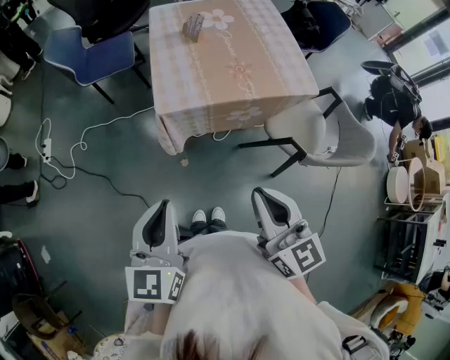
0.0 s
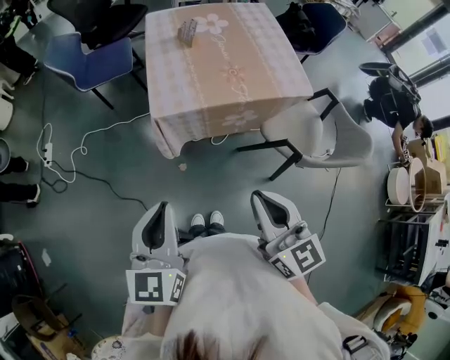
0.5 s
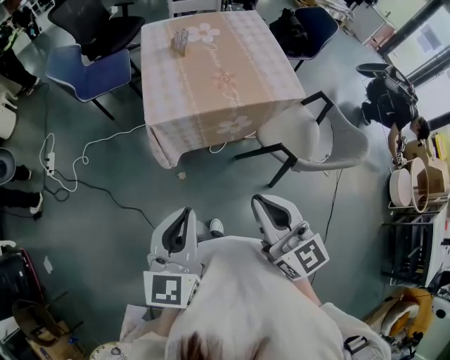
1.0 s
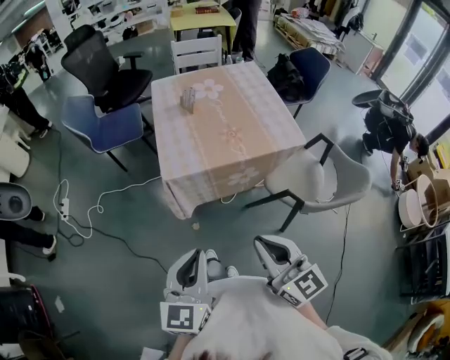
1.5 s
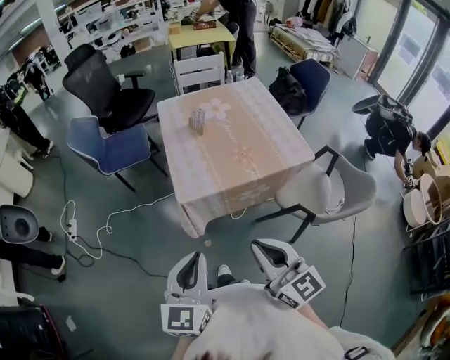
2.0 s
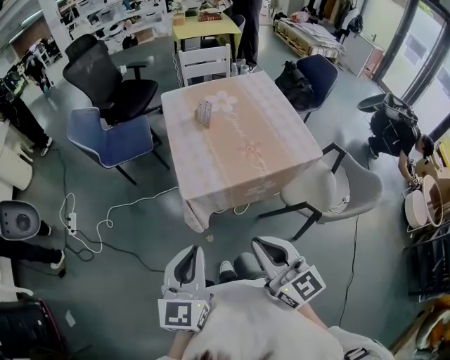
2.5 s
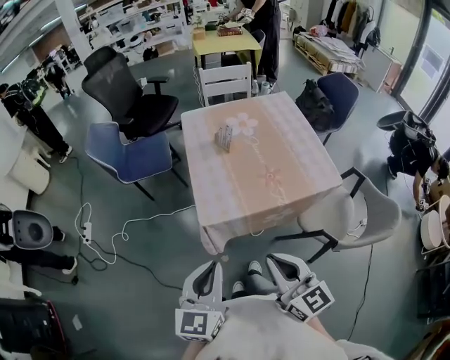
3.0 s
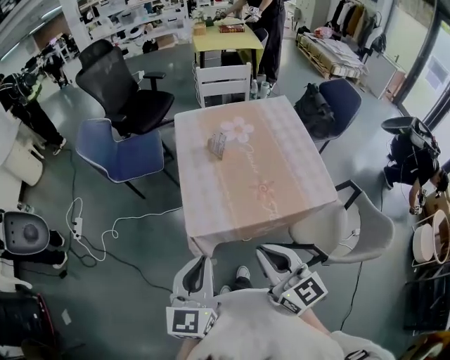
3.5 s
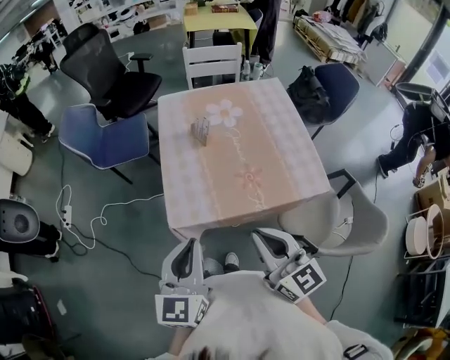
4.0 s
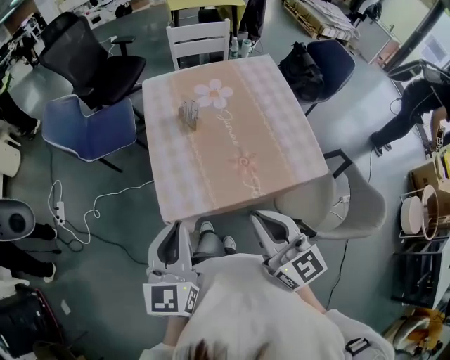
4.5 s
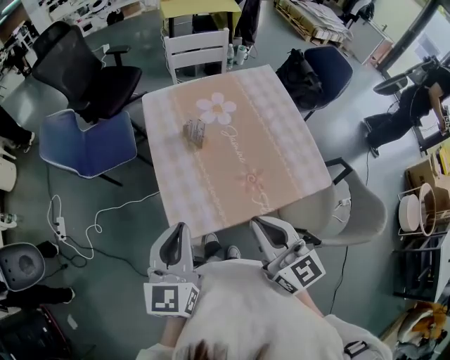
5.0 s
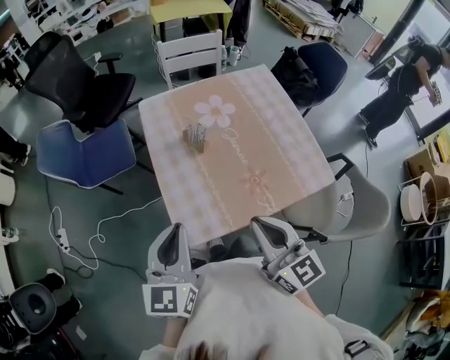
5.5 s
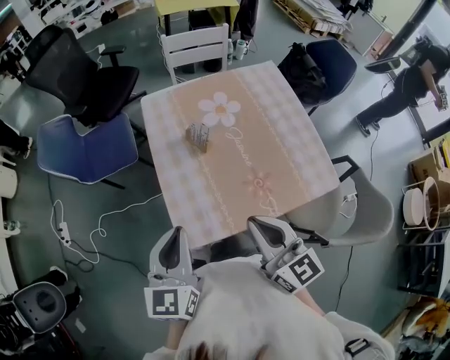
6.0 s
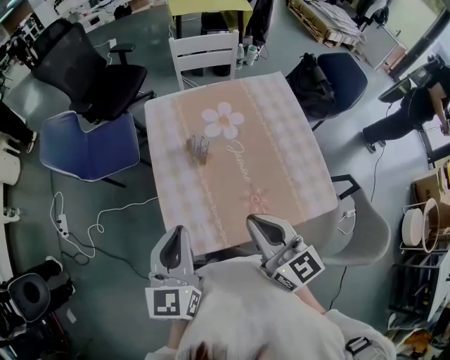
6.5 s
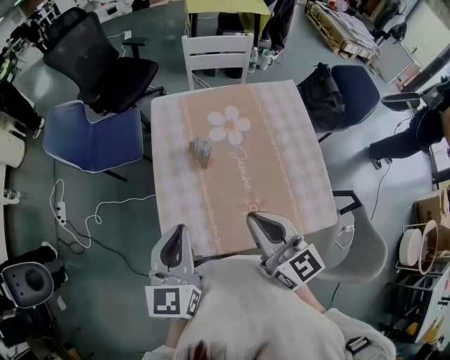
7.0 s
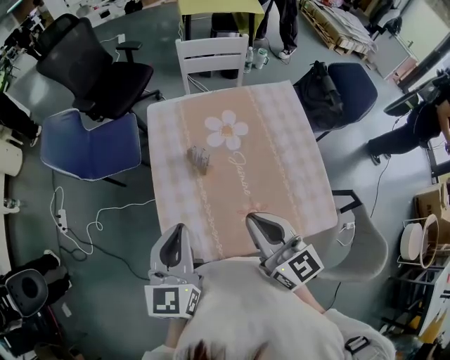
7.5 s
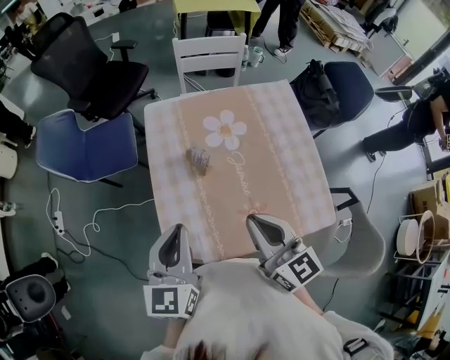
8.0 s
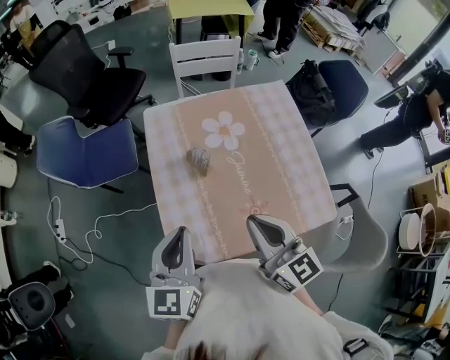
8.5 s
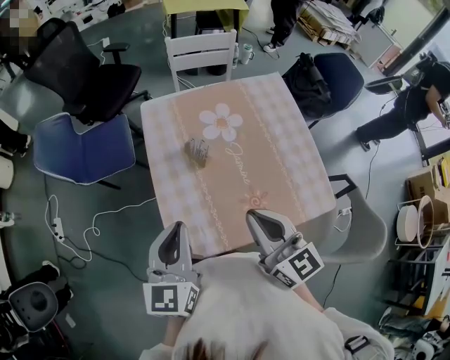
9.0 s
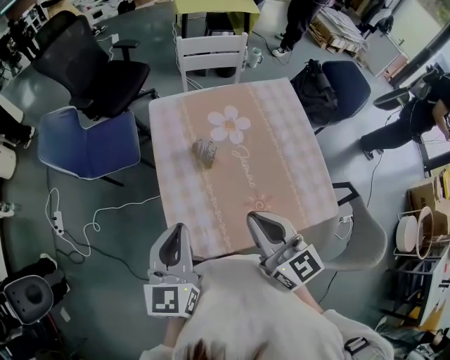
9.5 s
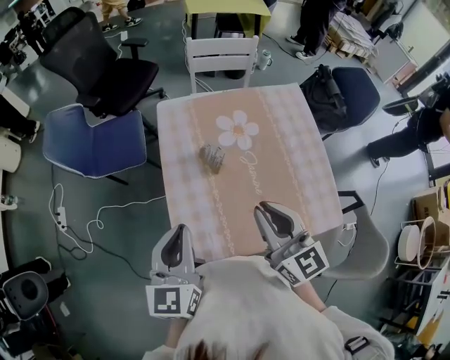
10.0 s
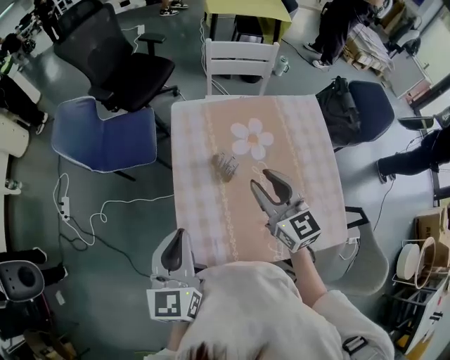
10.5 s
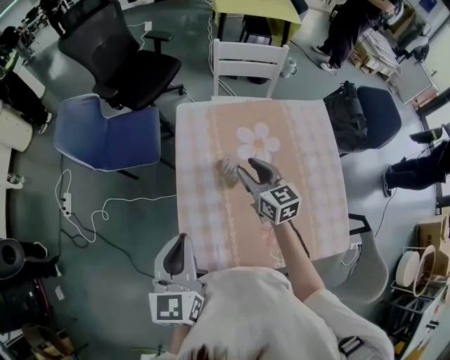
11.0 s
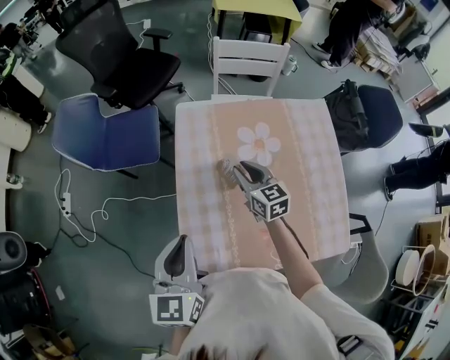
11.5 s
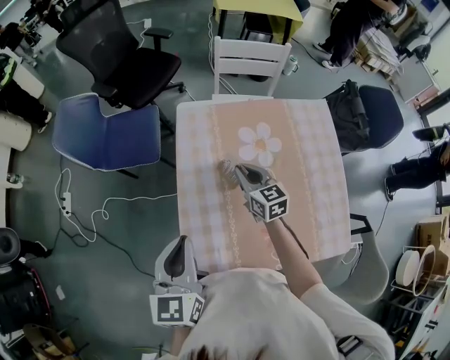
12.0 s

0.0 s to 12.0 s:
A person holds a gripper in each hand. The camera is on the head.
0.0 to 2.0 s: The left gripper goes to the right and returns, approximately 10 cm each way, while the right gripper moves about 5 cm to the right and comes back.
2.0 to 4.0 s: The two grippers go roughly 20 cm forward.
4.0 to 6.0 s: Both grippers move forward, some 15 cm.
6.0 to 8.0 s: Both grippers travel together forward and to the right, about 10 cm.
8.0 to 10.0 s: The grippers make only small movements.
10.0 to 12.0 s: The right gripper heads forward and downward, covering some 30 cm, and opens and closes again.

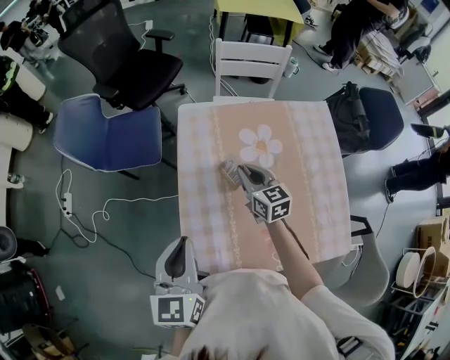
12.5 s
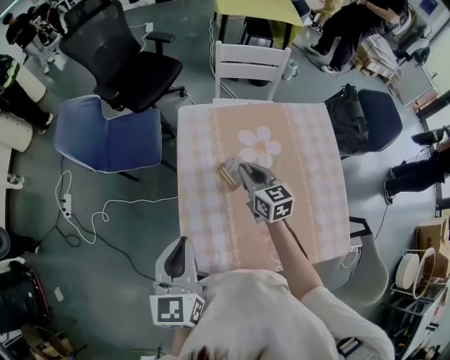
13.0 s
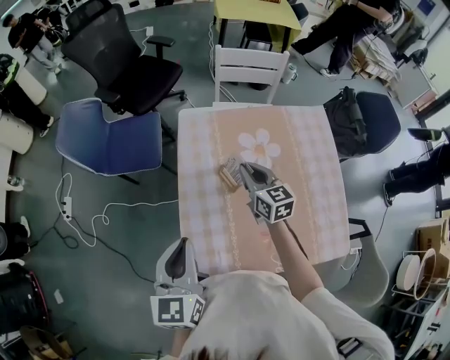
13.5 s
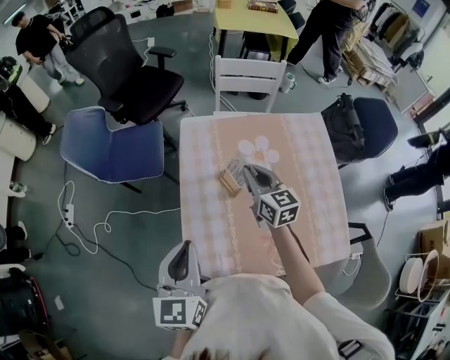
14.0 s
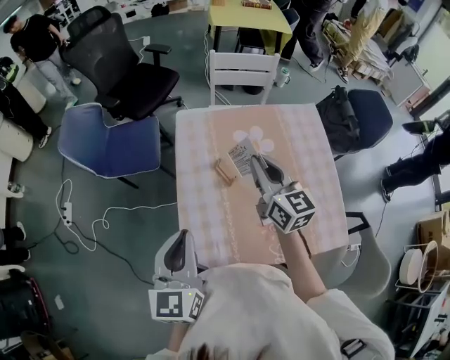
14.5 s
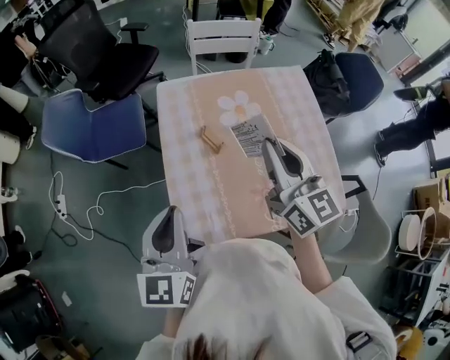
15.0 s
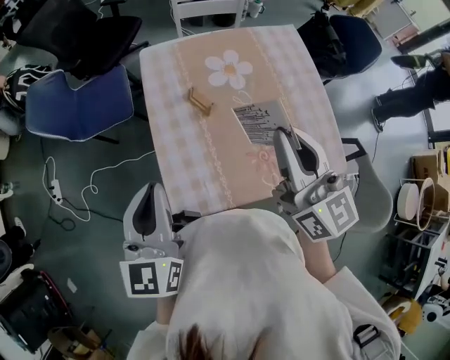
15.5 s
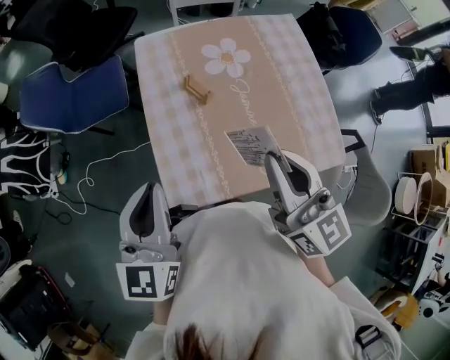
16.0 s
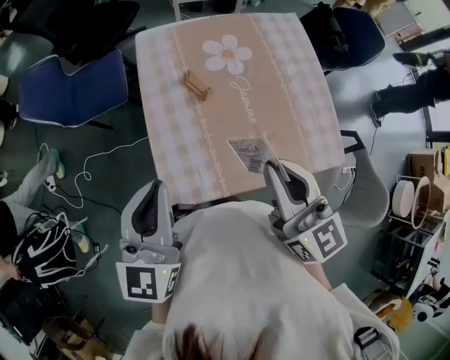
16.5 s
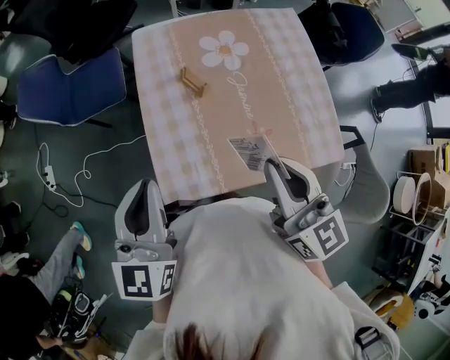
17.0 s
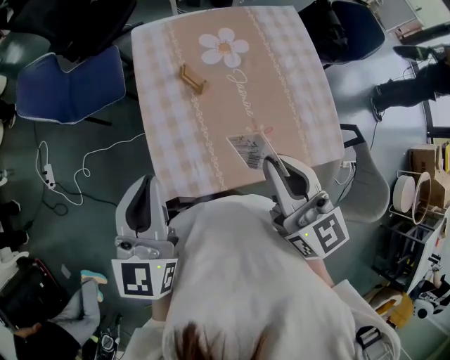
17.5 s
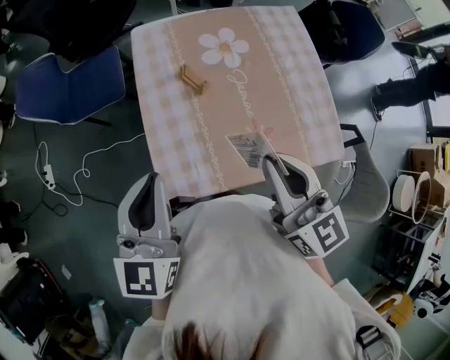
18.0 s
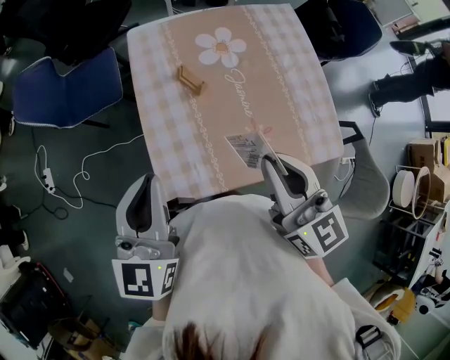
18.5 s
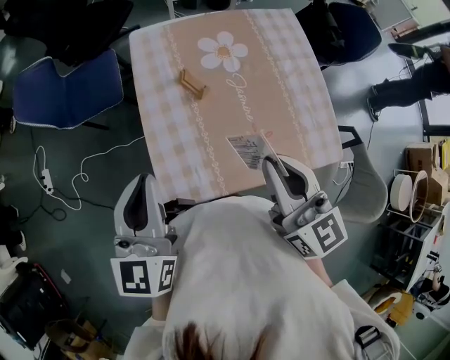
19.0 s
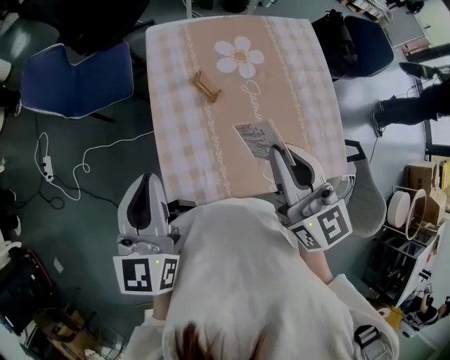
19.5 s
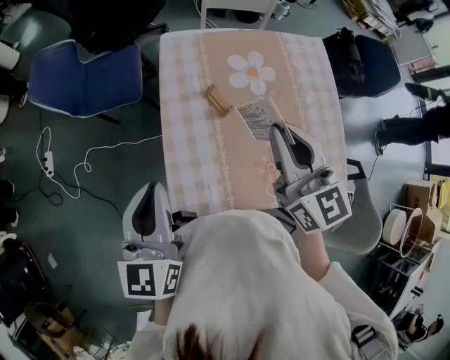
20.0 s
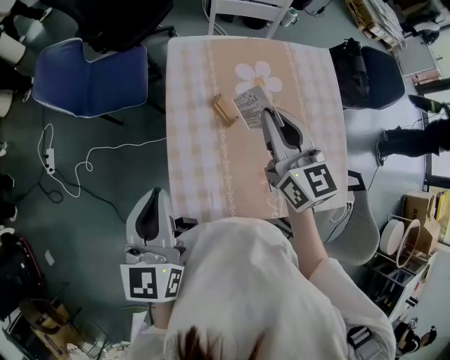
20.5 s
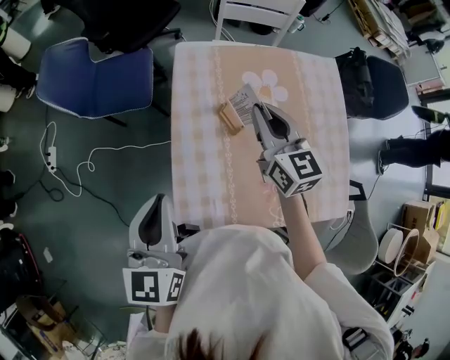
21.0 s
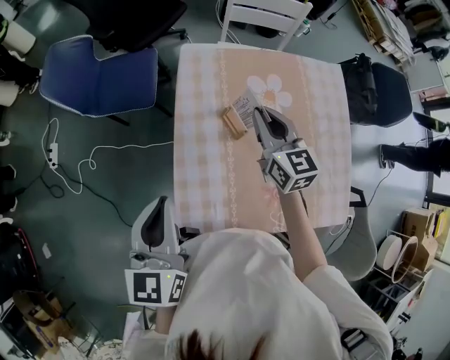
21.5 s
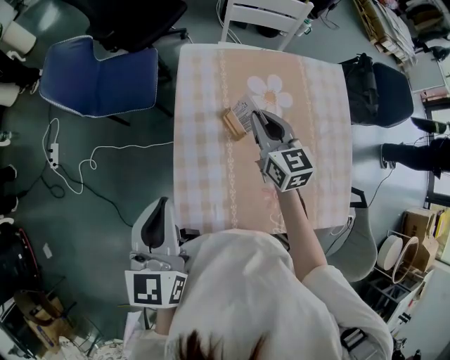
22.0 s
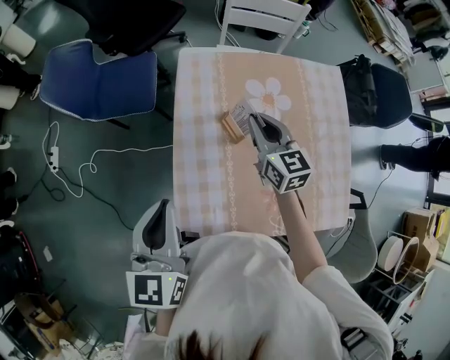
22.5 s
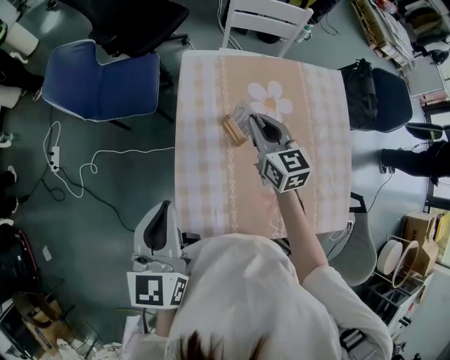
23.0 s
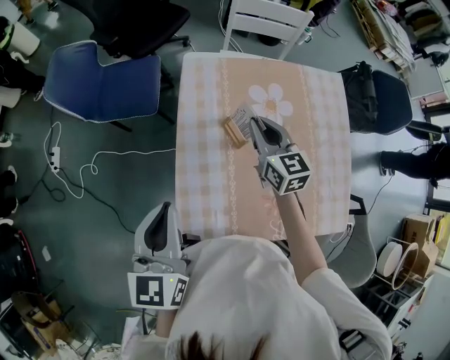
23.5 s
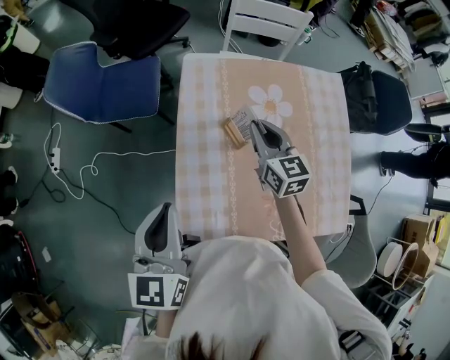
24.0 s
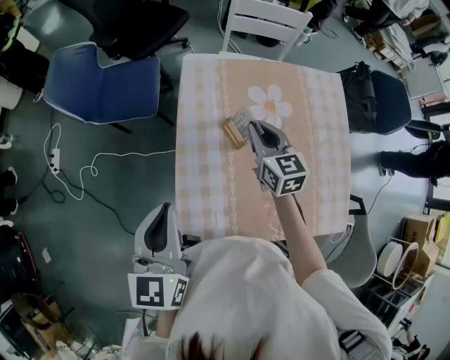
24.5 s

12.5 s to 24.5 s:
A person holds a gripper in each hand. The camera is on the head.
12.5 to 14.5 s: The right gripper heads upward, covering approximately 15 cm.
14.5 to 16.5 s: The right gripper heads backward, covering approximately 20 cm.
16.5 to 18.5 s: The two grippers keep their place.
18.5 to 20.5 s: The left gripper ends up about 5 cm from where it was, while the right gripper heads forward, covering approximately 20 cm.
20.5 to 22.5 s: The right gripper moves downward and forward, some 15 cm.
22.5 to 24.5 s: Both grippers stay about where they are.

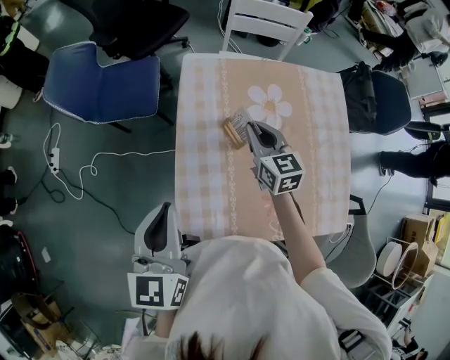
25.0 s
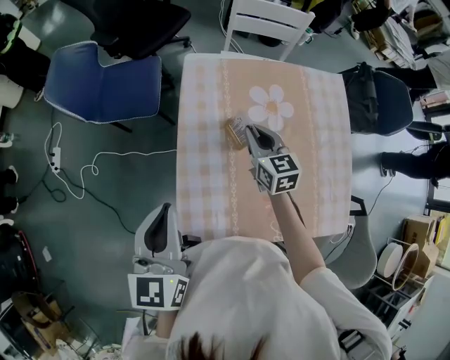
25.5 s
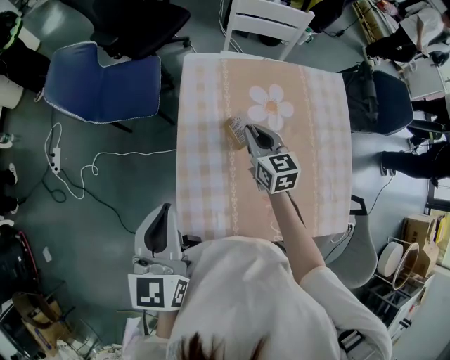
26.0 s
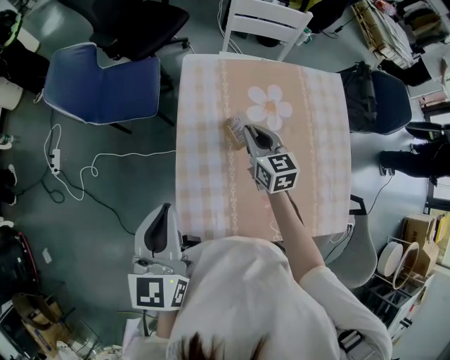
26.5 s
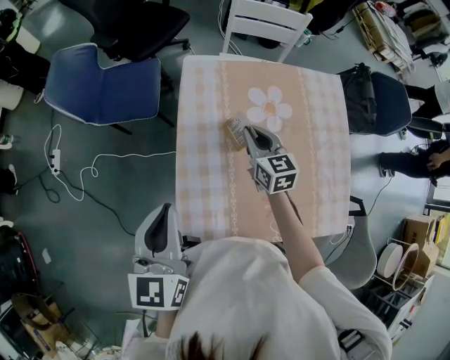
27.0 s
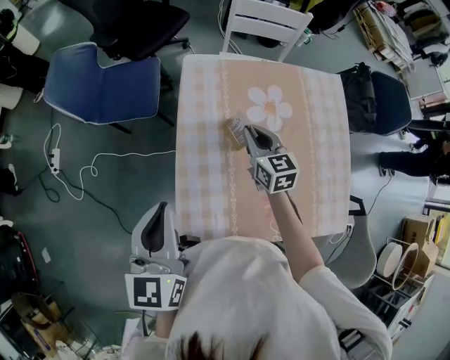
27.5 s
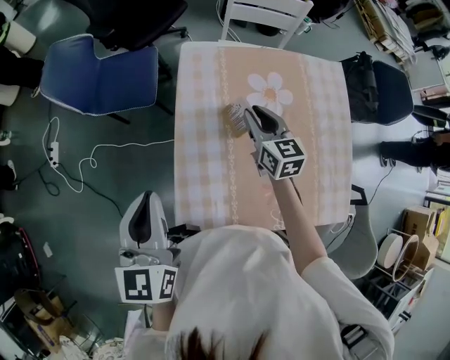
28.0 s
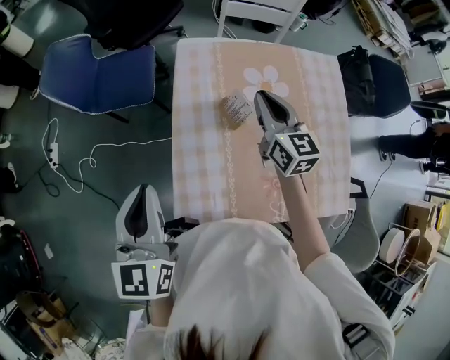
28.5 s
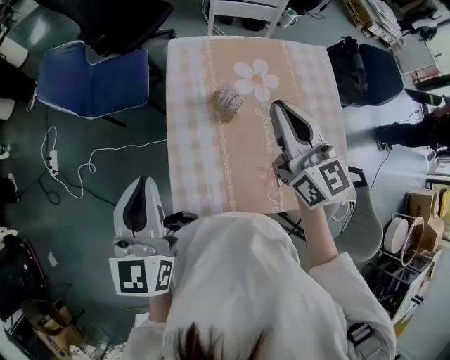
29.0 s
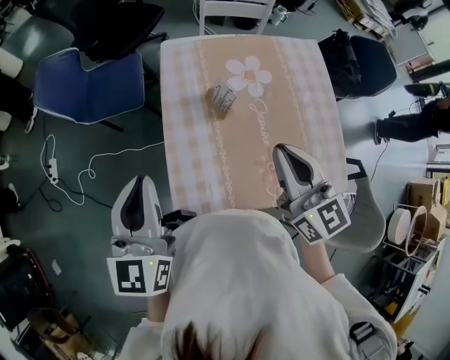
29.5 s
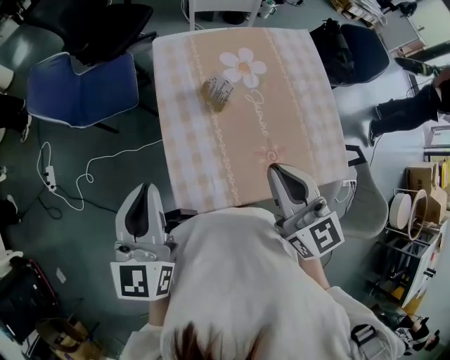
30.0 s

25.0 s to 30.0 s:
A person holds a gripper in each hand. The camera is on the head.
25.0 to 27.5 s: There are only small adjustments of the grippers.
27.5 to 30.0 s: The right gripper is displaced backward and upward by about 30 cm; the left gripper changes place by some 5 cm.
